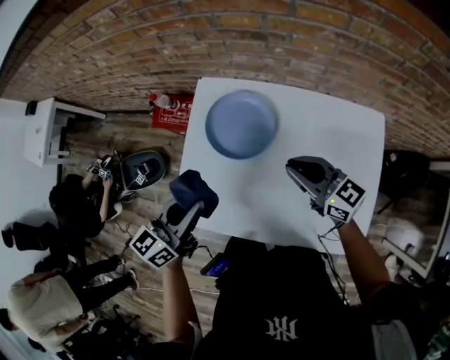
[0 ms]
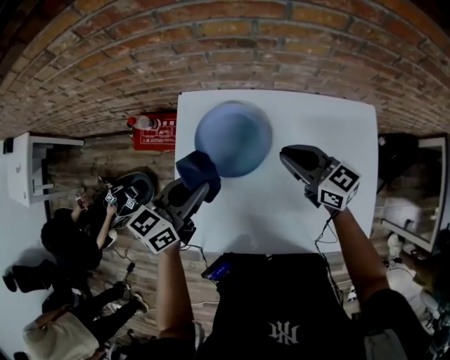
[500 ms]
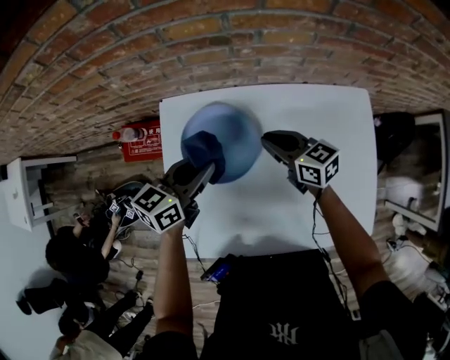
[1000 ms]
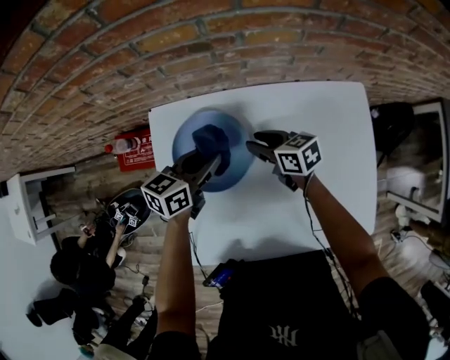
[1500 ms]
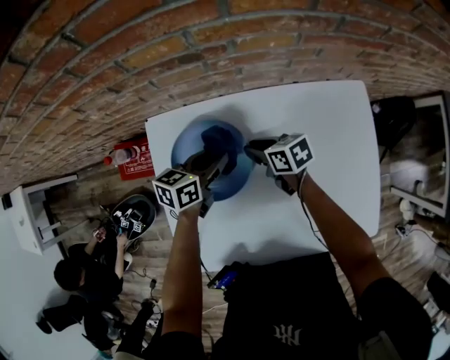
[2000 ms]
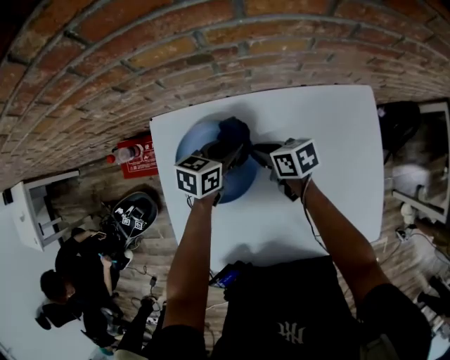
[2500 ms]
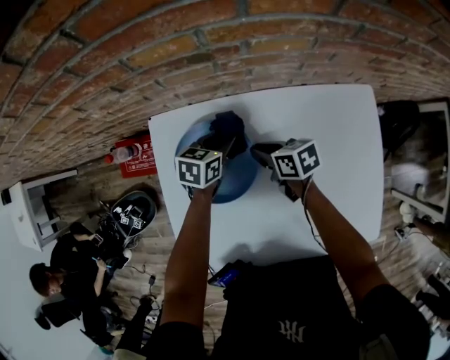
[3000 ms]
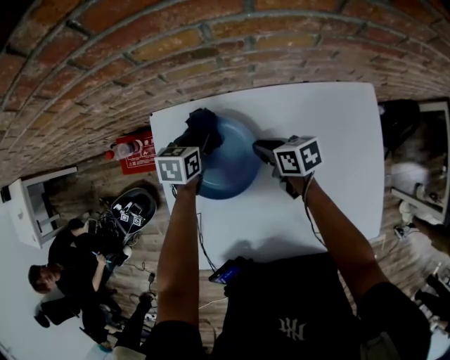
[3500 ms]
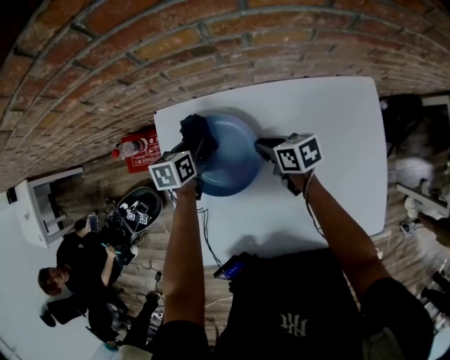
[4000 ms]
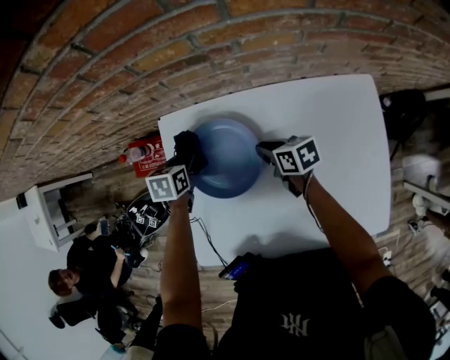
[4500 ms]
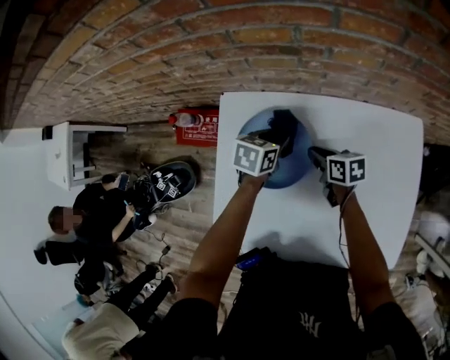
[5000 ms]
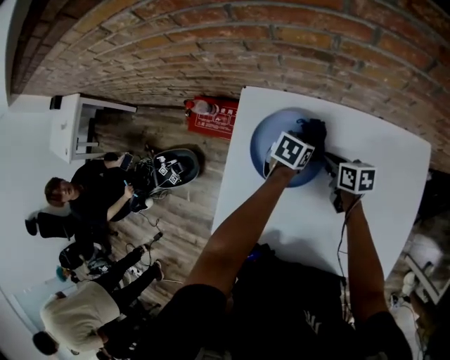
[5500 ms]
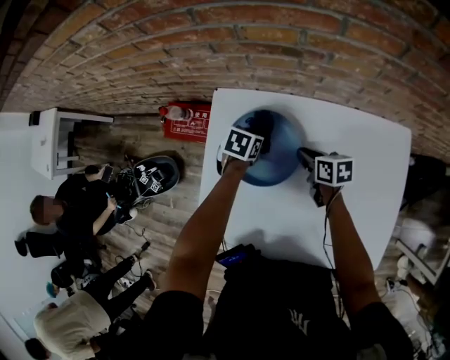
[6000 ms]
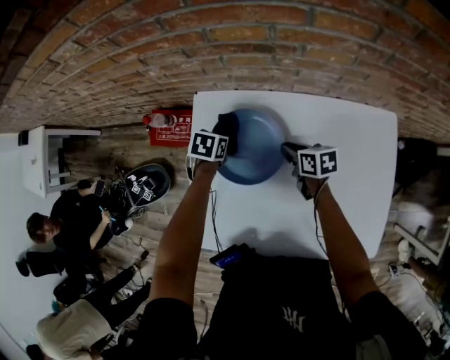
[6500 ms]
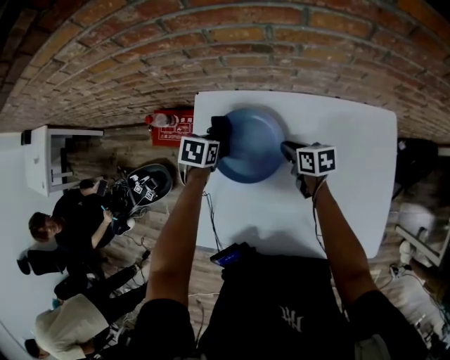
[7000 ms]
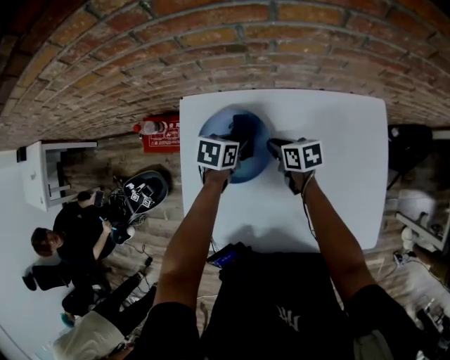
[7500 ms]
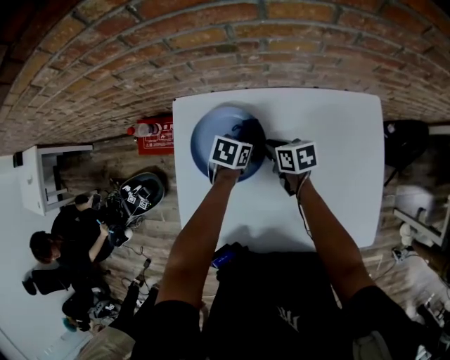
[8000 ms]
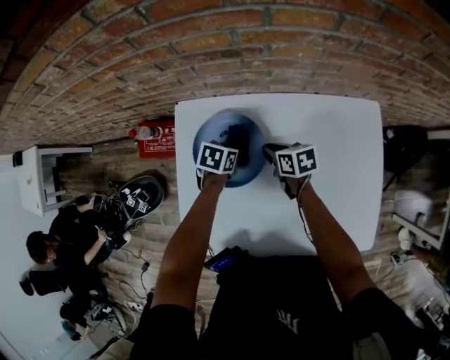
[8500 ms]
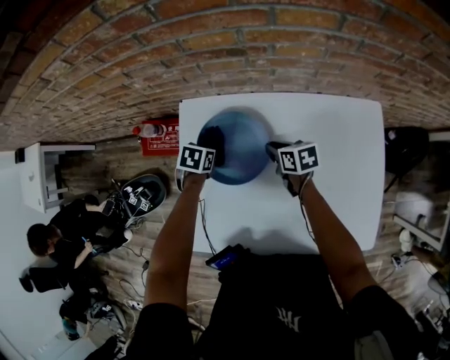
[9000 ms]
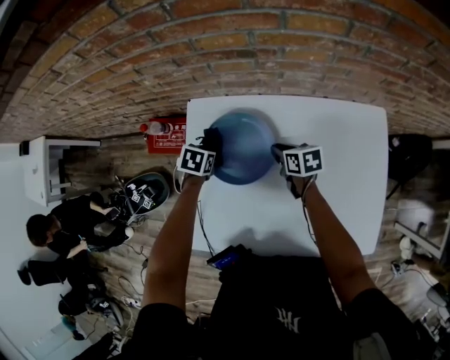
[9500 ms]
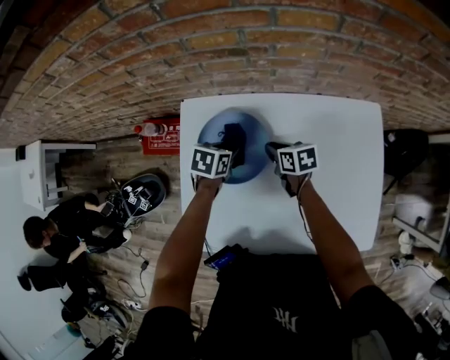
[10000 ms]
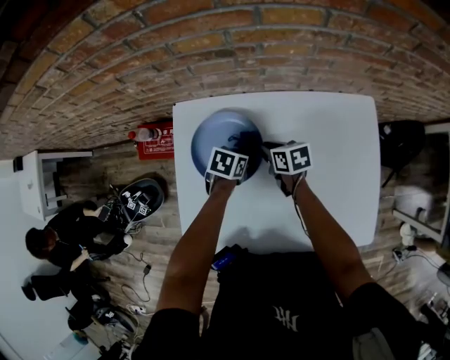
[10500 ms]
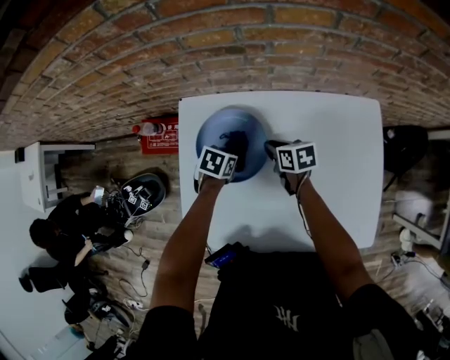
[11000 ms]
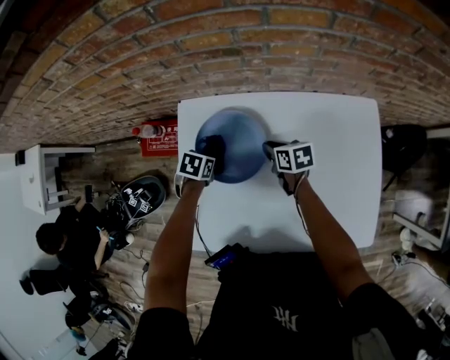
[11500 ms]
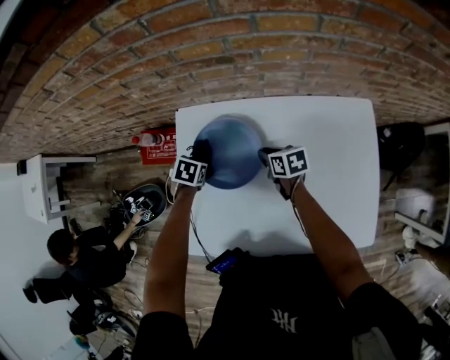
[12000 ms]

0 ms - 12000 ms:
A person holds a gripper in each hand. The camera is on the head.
0 ms - 2000 ms: The right gripper heads downward and forward, covering approximately 25 cm, and changes its angle by roughly 50 degrees. Meanwhile the left gripper moves forward, downward and to the right, roughly 30 cm, and swivels approximately 30 degrees.
2000 ms - 4000 ms: The left gripper is displaced to the left, downward and forward by some 15 cm, and rotates about 30 degrees.
4000 ms - 6000 ms: The left gripper swings left and right, roughly 15 cm each way, with 2 reversals.
6000 ms - 8000 ms: The left gripper travels to the right by roughly 10 cm.
8000 ms - 10000 ms: The left gripper moves to the left, some 5 cm.
10000 ms - 12000 ms: The left gripper ends up approximately 10 cm from where it was, and changes its angle by some 20 degrees.

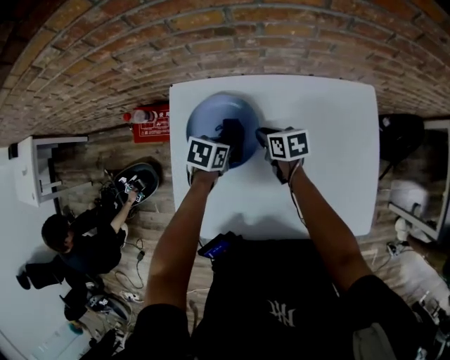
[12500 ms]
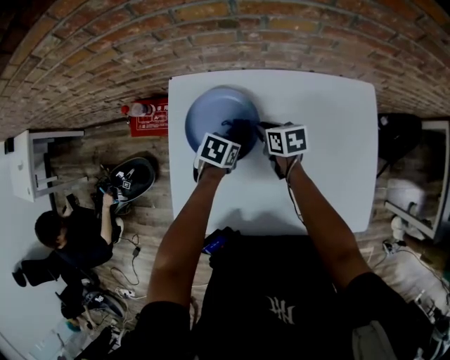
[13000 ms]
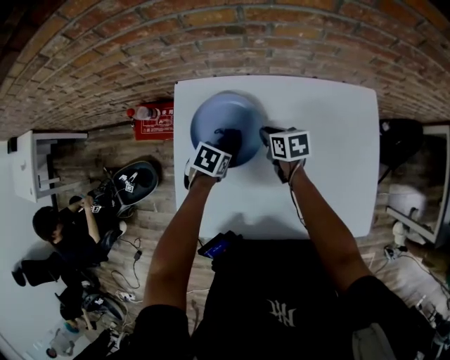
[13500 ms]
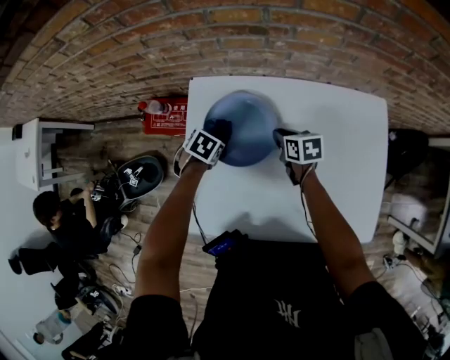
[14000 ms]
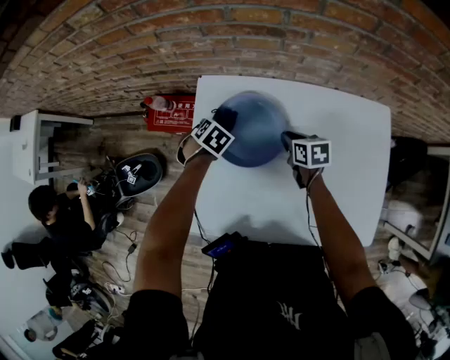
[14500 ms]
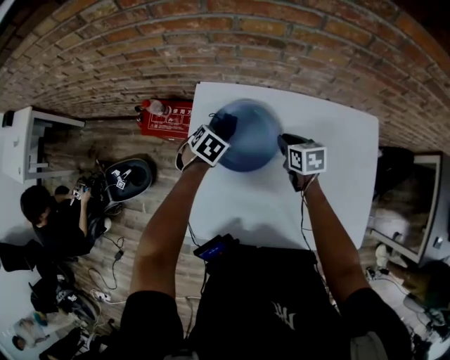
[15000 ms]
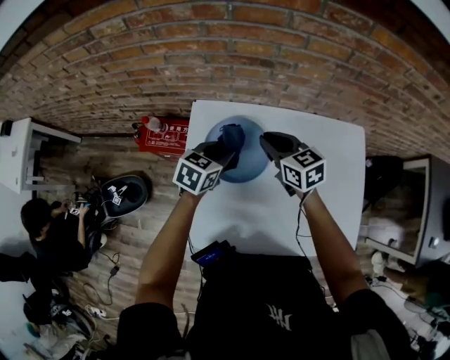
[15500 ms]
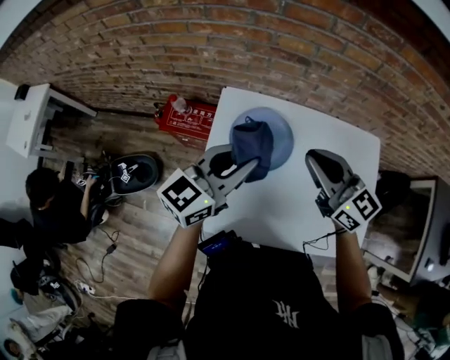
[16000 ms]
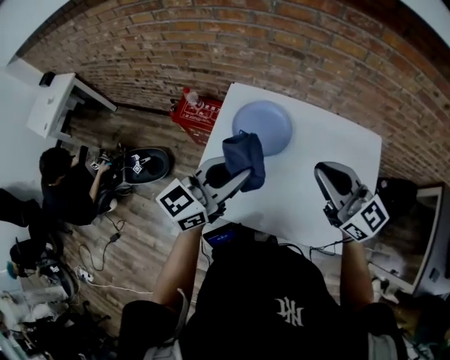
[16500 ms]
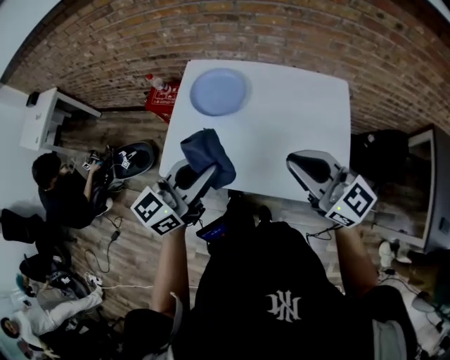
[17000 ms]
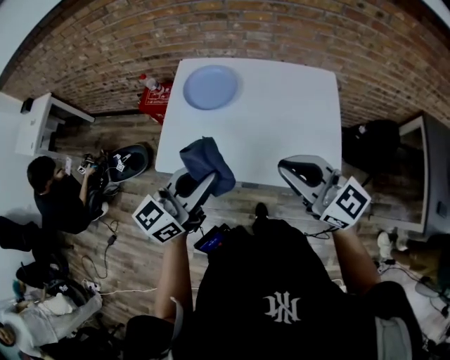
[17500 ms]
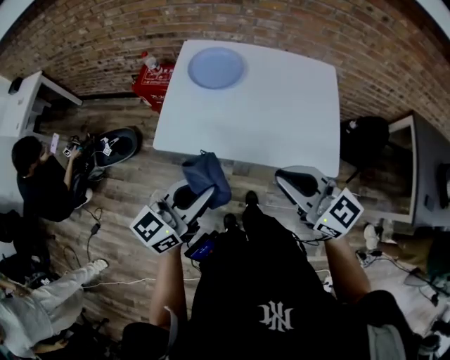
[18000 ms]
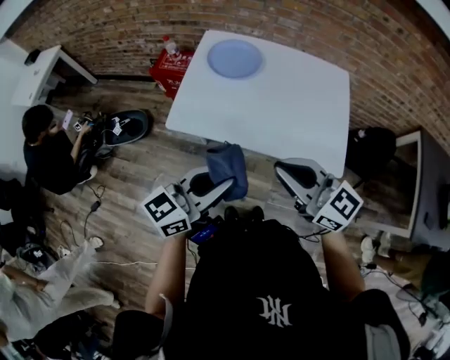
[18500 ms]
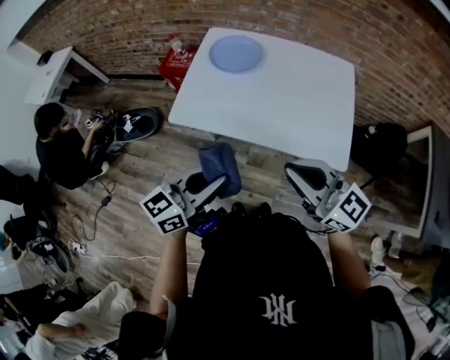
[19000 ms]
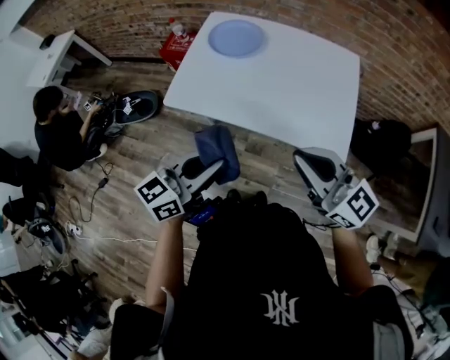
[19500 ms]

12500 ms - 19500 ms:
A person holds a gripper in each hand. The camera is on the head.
12500 ms - 14500 ms: The left gripper moves approximately 15 cm, and changes its angle by about 30 degrees.
14500 ms - 16000 ms: Both grippers move upward, roughly 35 cm. The right gripper tilts its fingers some 40 degrees upward. The left gripper tips its fingers upward by some 70 degrees.
16000 ms - 17500 ms: Both grippers travel together backward, about 30 cm.
17500 ms - 19500 ms: The grippers both shift backward by approximately 15 cm.

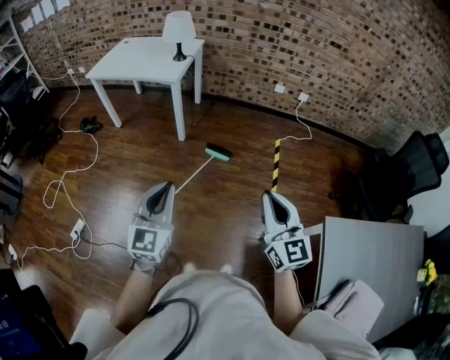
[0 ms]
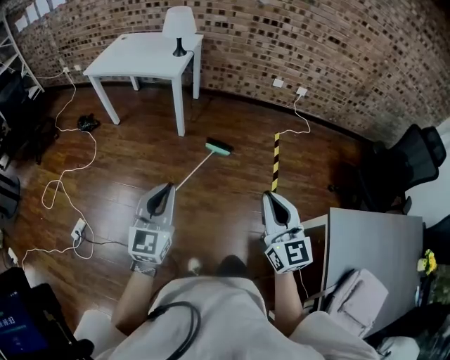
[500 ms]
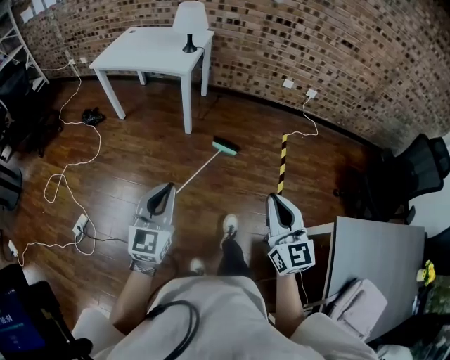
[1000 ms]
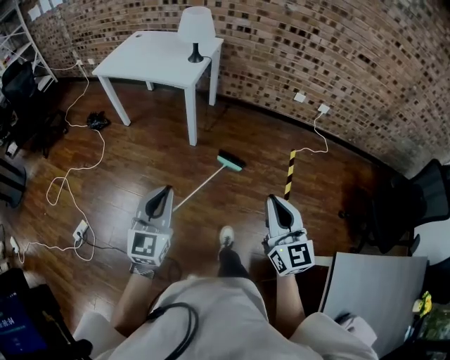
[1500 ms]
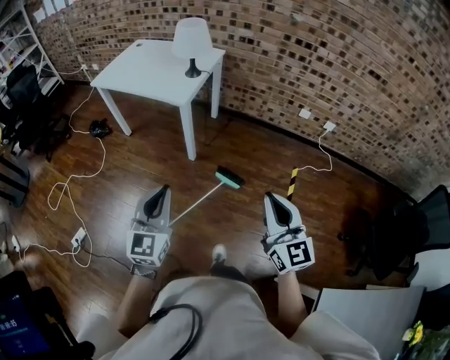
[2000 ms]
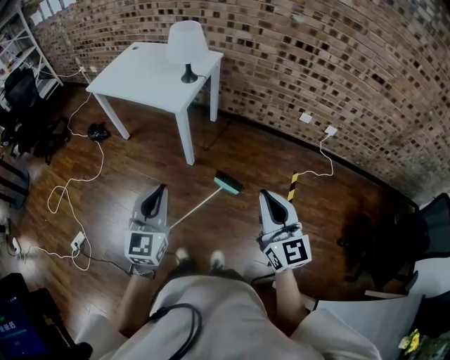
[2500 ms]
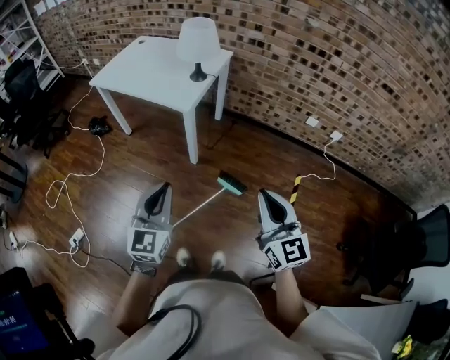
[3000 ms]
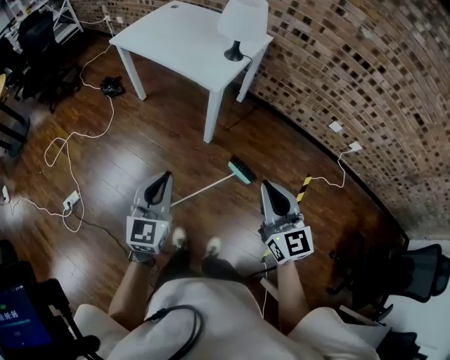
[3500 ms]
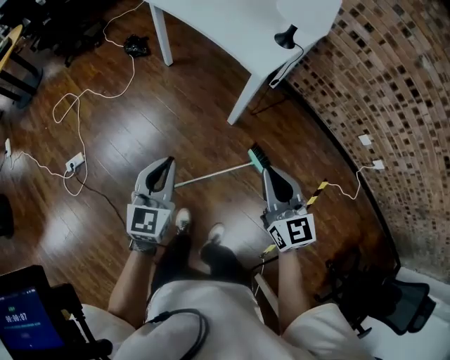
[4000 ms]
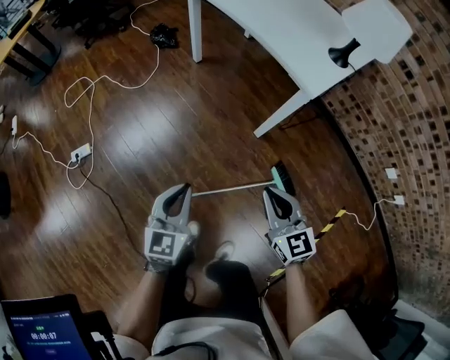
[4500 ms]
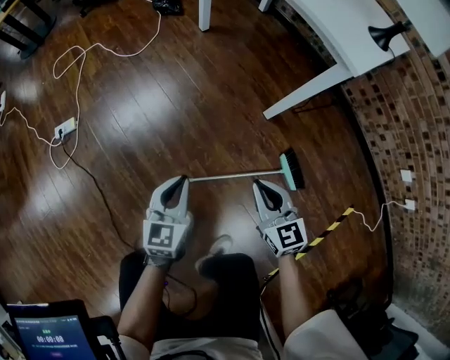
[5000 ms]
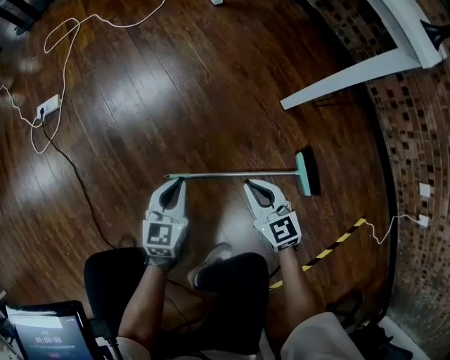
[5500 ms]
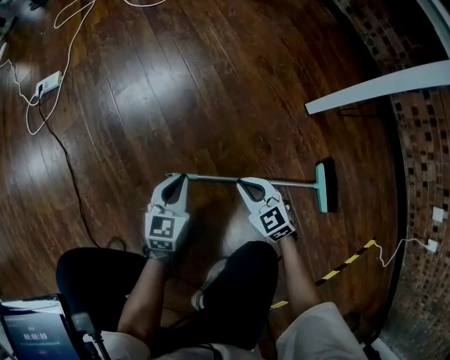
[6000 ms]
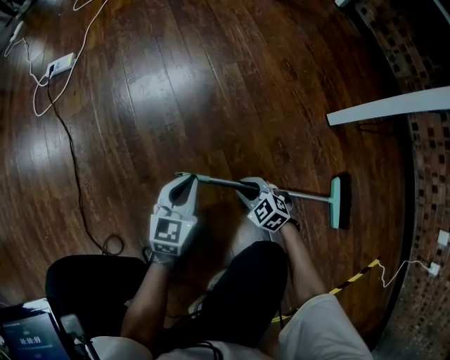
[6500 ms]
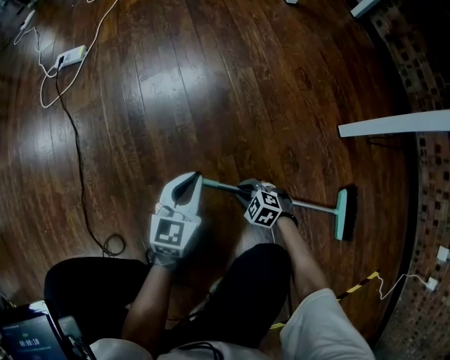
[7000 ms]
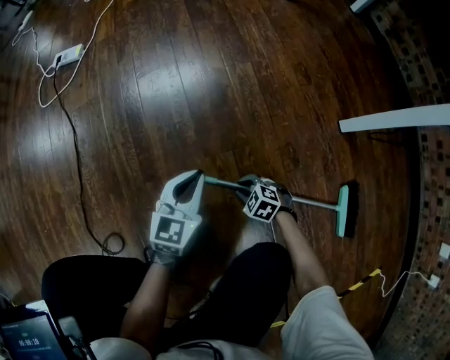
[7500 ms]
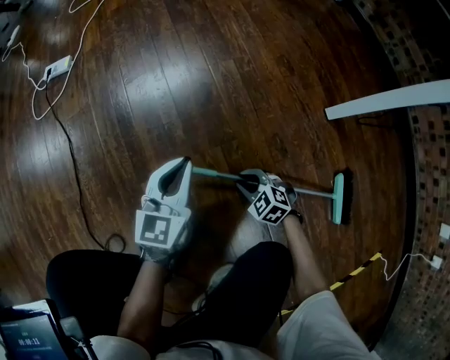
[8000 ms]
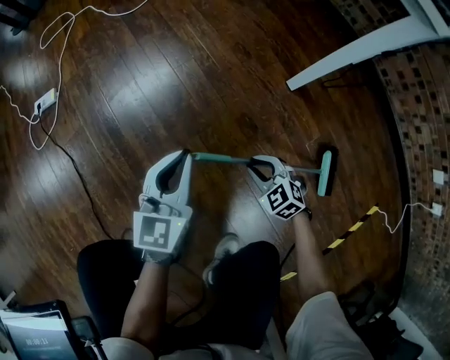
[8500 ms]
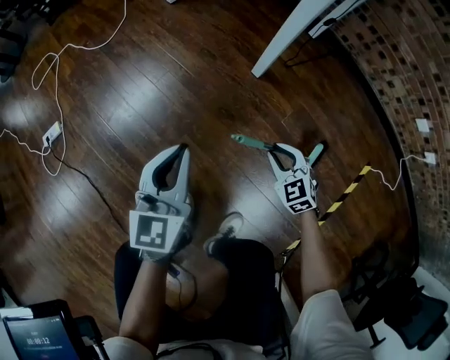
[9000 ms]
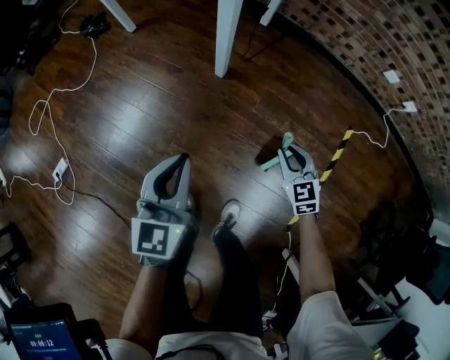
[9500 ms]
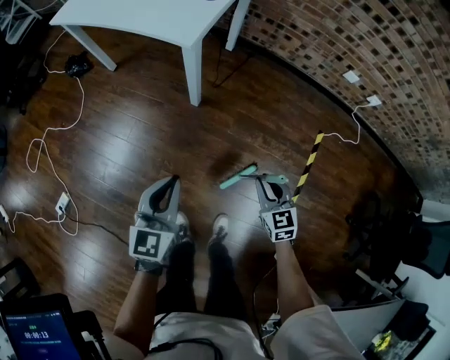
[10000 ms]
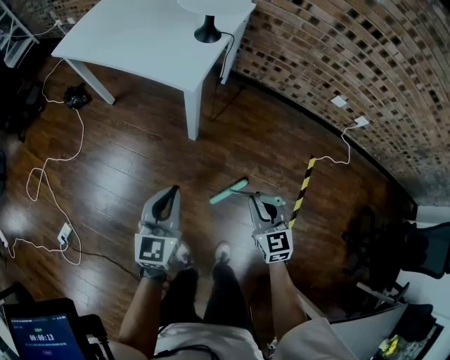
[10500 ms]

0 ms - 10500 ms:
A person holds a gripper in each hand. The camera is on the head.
0 ms - 2000 ms: The two grippers go some 25 cm forward.
2000 ms - 4000 ms: The left gripper travels forward, downward and to the left by about 25 cm, and turns by some 20 degrees; the right gripper heads forward, to the left and downward, covering approximately 35 cm, and changes its angle by roughly 30 degrees.
4000 ms - 6500 ms: Both grippers travel together downward, approximately 80 cm. The right gripper points its fingers some 40 degrees further downward; the left gripper swivels about 30 degrees.
6500 ms - 8500 ms: Both grippers travel together upward, approximately 20 cm.
8500 ms - 10500 ms: The grippers both shift upward by roughly 40 cm. The right gripper swivels roughly 70 degrees; the left gripper swivels about 30 degrees.
